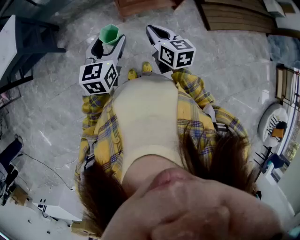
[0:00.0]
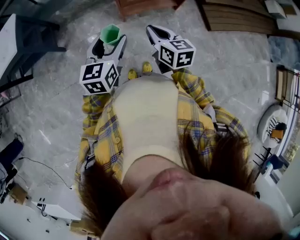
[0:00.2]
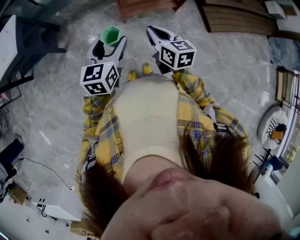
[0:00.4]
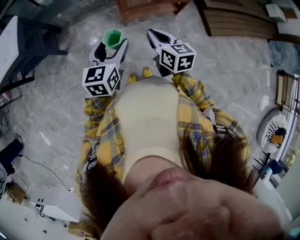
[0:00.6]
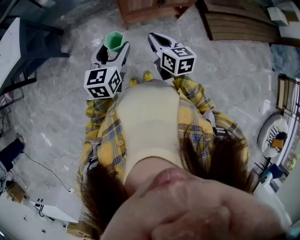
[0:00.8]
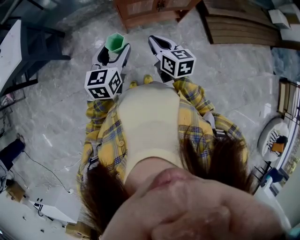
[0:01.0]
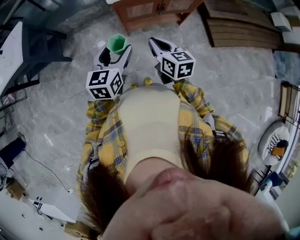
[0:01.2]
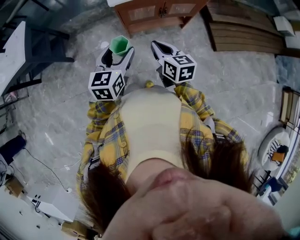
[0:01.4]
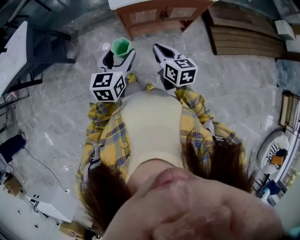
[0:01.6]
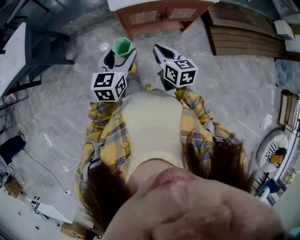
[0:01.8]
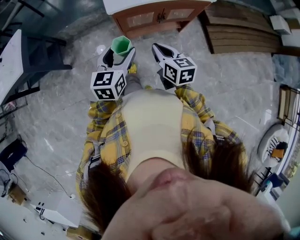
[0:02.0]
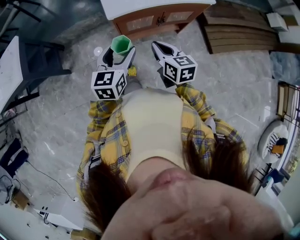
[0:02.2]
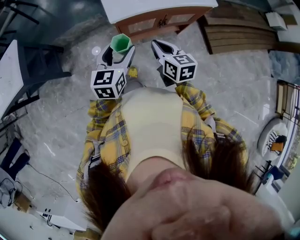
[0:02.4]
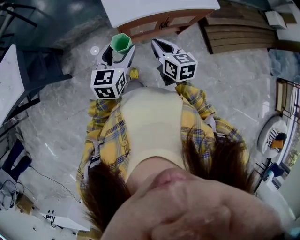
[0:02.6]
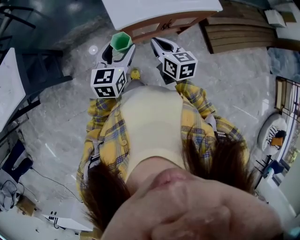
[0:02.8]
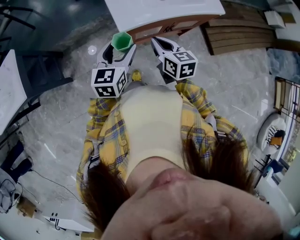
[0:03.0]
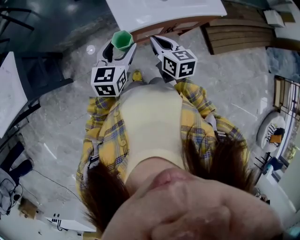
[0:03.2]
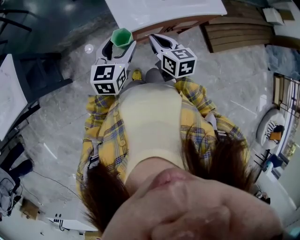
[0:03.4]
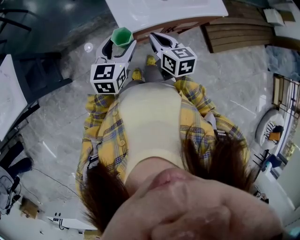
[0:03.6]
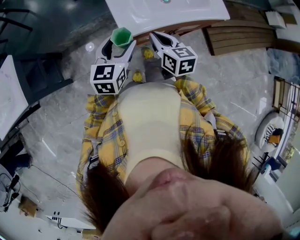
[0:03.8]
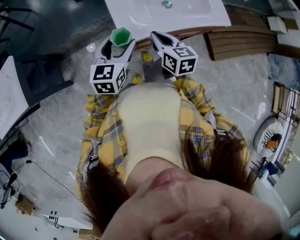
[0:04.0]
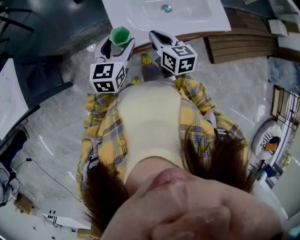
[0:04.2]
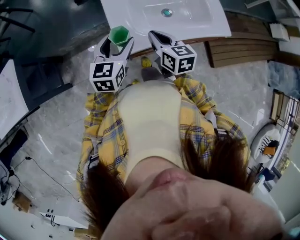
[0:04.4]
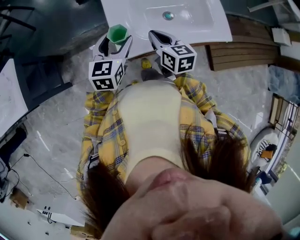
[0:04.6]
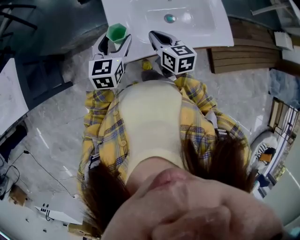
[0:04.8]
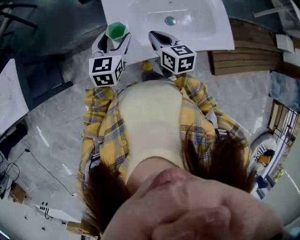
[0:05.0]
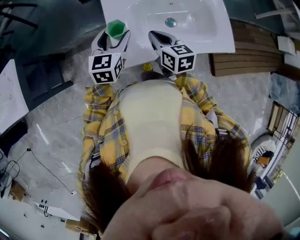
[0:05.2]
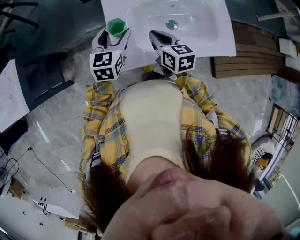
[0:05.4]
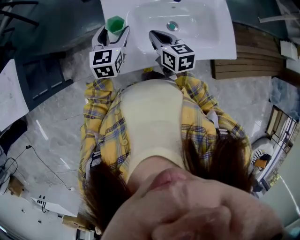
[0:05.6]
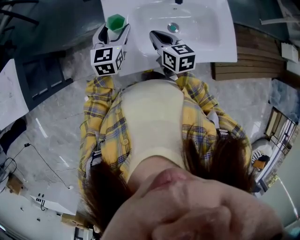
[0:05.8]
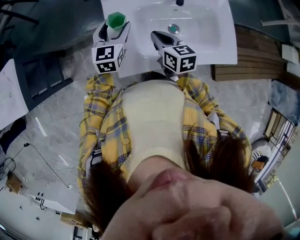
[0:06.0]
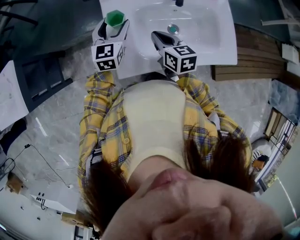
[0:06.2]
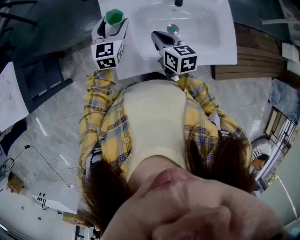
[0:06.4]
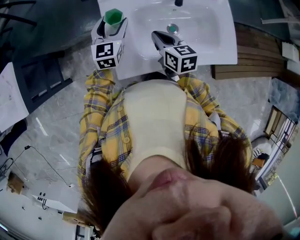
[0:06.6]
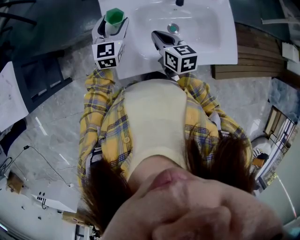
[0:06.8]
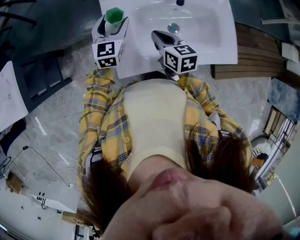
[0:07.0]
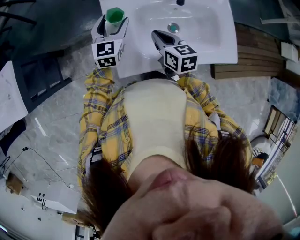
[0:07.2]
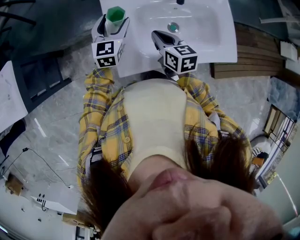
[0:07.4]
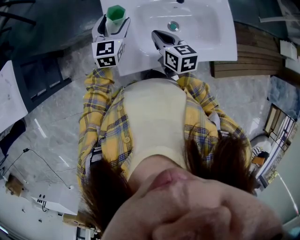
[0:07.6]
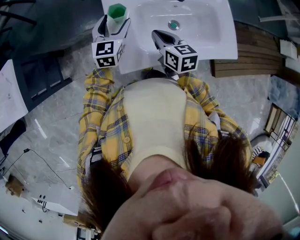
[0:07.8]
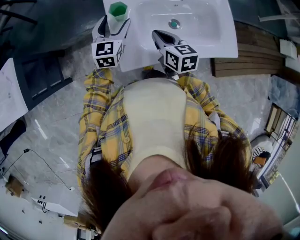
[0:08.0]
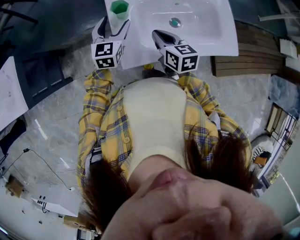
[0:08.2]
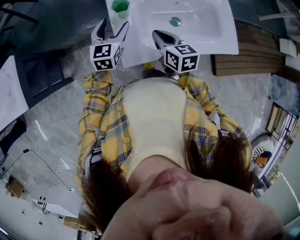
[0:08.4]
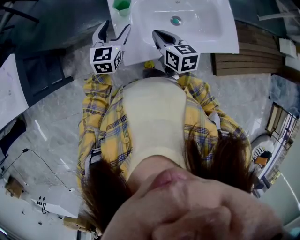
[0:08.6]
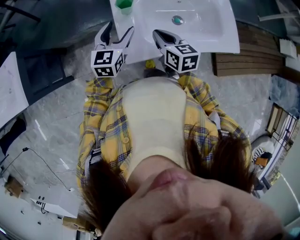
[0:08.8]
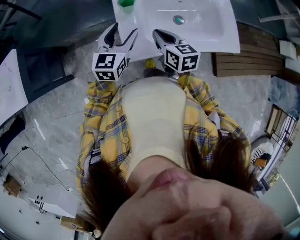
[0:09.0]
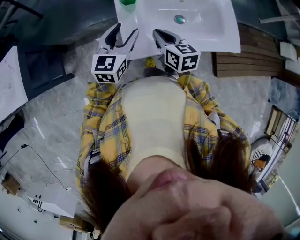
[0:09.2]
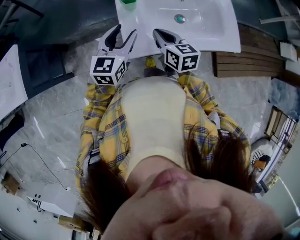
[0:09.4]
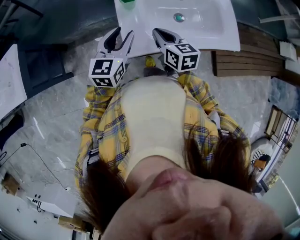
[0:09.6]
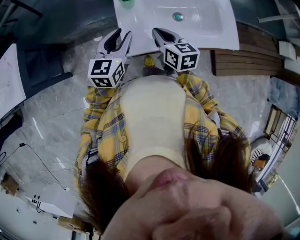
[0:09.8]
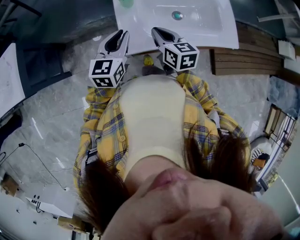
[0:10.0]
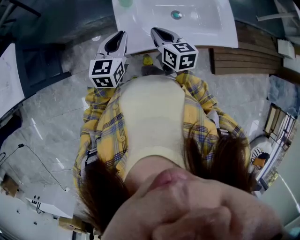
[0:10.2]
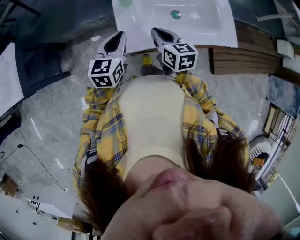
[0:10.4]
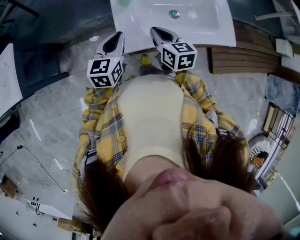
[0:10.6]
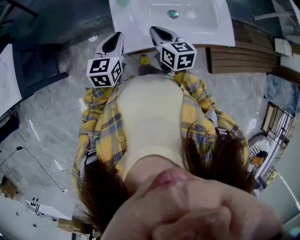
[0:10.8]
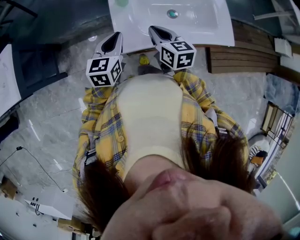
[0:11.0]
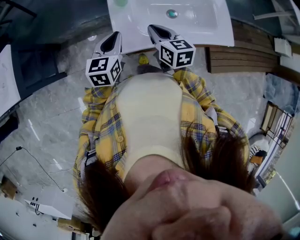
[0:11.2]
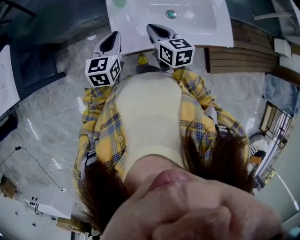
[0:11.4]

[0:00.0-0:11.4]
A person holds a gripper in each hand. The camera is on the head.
0:00.0 to 0:01.4: The left gripper is displaced to the right and forward by some 10 cm; the right gripper goes some 10 cm forward and to the right.
0:01.4 to 0:02.8: Both grippers move forward, some 15 cm.
0:02.8 to 0:04.2: Both grippers travel together forward, about 15 cm.
0:04.2 to 0:05.6: The two grippers go approximately 15 cm forward.
0:05.6 to 0:07.2: The left gripper goes approximately 5 cm forward.
0:07.2 to 0:08.6: The right gripper shifts by about 5 cm. Meanwhile the left gripper travels backward by approximately 5 cm.
0:08.6 to 0:10.0: The left gripper travels backward by about 10 cm, and closes.
0:10.0 to 0:11.4: The grippers stay close to where they were, moving slightly.

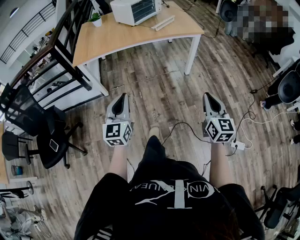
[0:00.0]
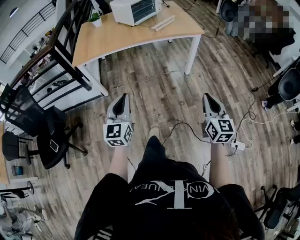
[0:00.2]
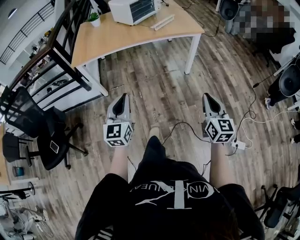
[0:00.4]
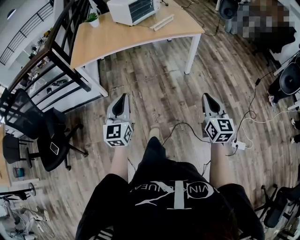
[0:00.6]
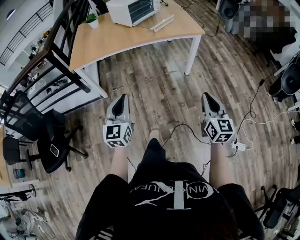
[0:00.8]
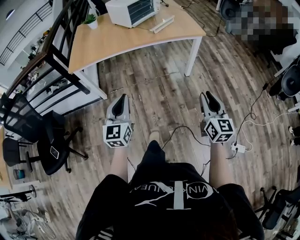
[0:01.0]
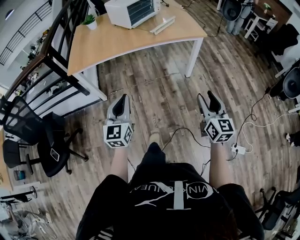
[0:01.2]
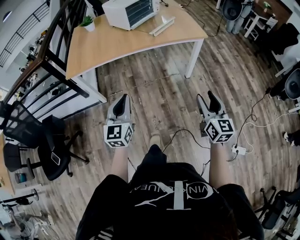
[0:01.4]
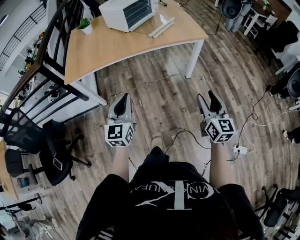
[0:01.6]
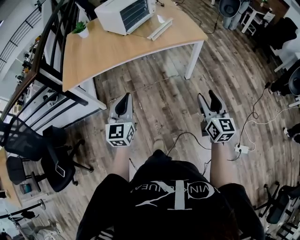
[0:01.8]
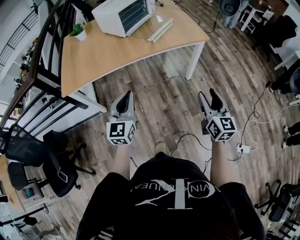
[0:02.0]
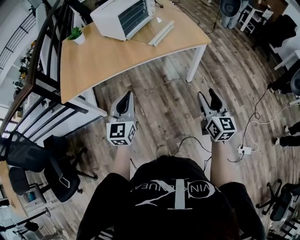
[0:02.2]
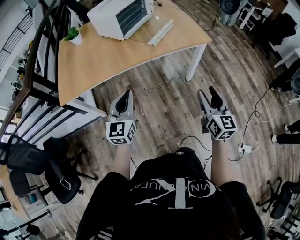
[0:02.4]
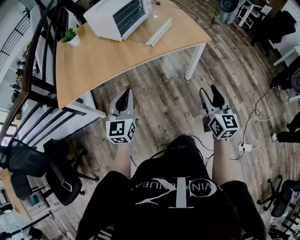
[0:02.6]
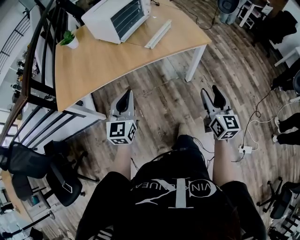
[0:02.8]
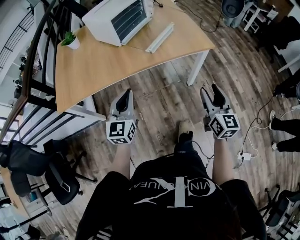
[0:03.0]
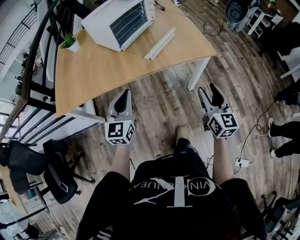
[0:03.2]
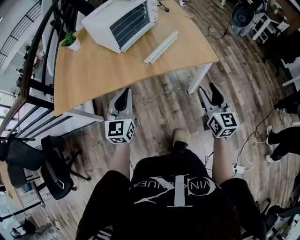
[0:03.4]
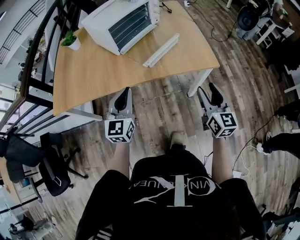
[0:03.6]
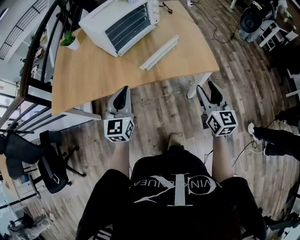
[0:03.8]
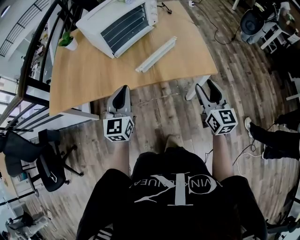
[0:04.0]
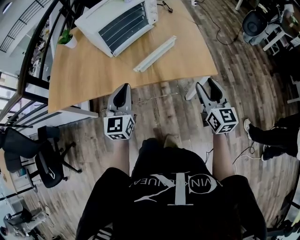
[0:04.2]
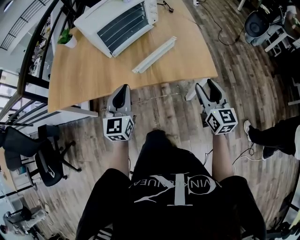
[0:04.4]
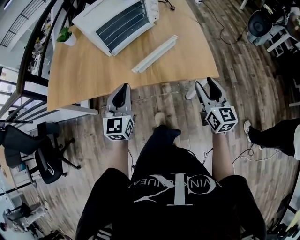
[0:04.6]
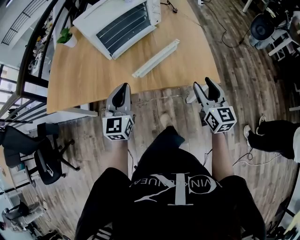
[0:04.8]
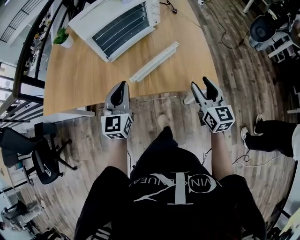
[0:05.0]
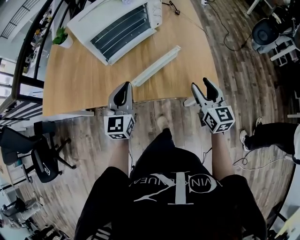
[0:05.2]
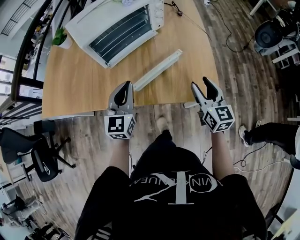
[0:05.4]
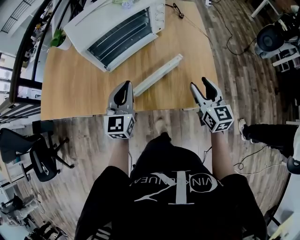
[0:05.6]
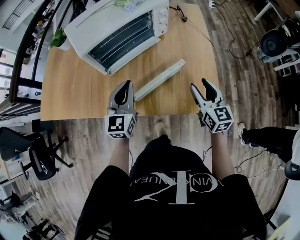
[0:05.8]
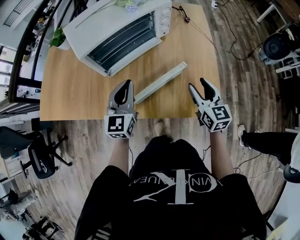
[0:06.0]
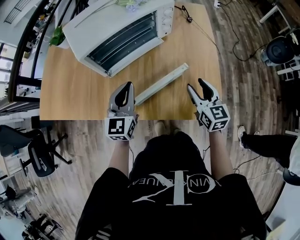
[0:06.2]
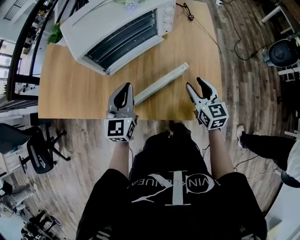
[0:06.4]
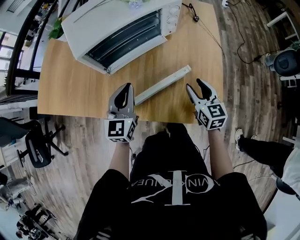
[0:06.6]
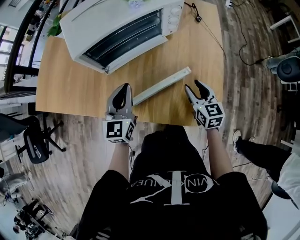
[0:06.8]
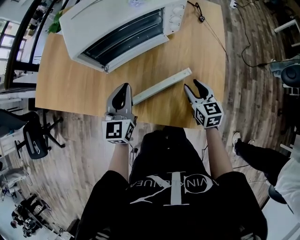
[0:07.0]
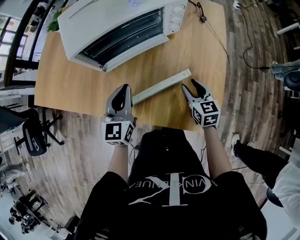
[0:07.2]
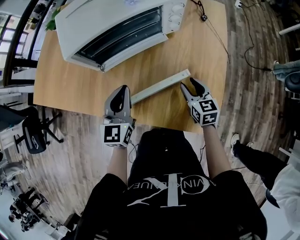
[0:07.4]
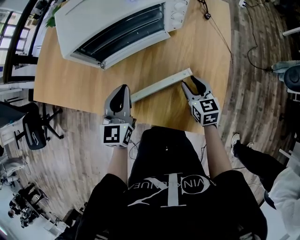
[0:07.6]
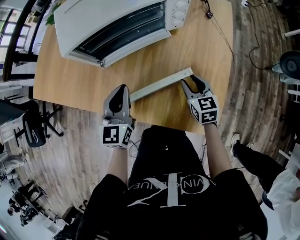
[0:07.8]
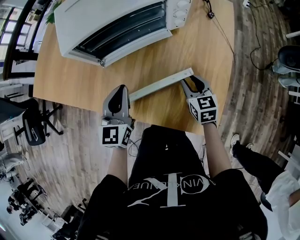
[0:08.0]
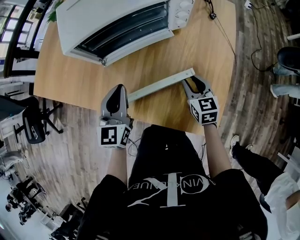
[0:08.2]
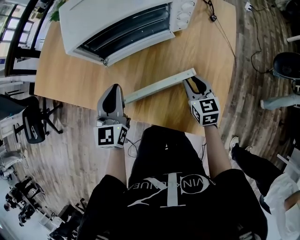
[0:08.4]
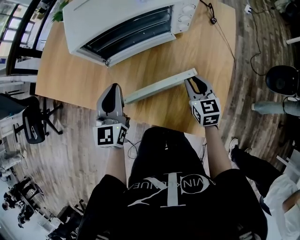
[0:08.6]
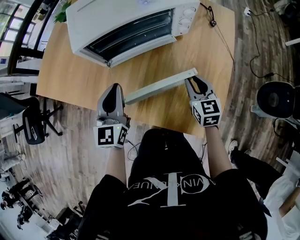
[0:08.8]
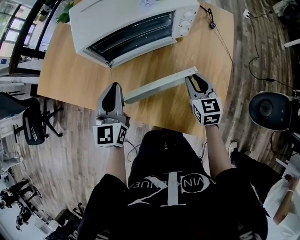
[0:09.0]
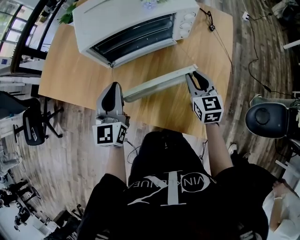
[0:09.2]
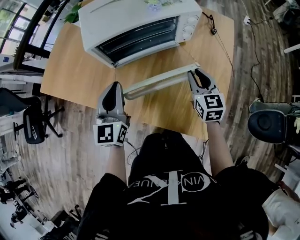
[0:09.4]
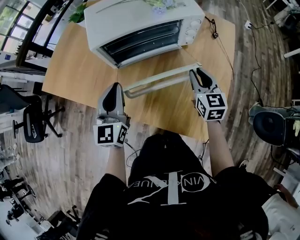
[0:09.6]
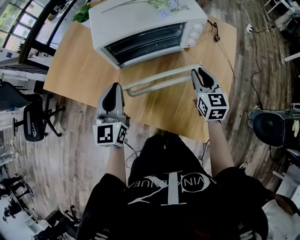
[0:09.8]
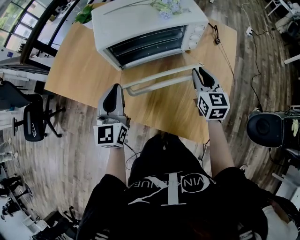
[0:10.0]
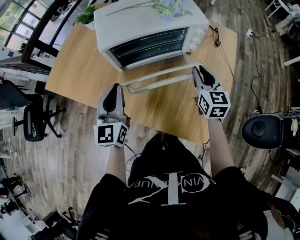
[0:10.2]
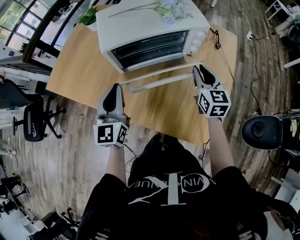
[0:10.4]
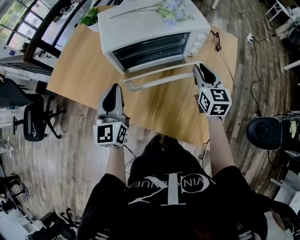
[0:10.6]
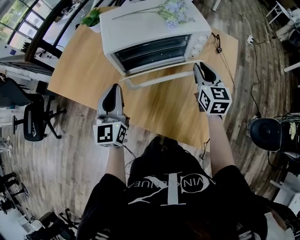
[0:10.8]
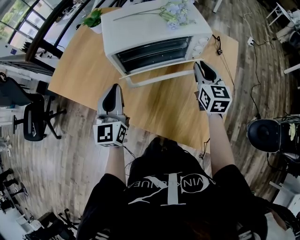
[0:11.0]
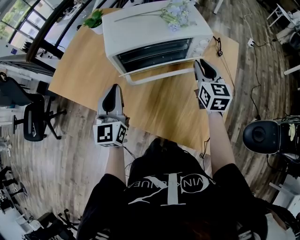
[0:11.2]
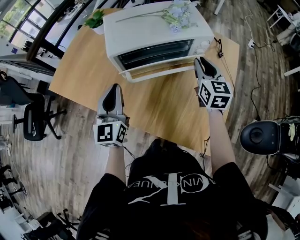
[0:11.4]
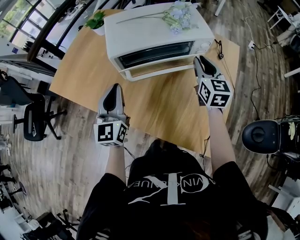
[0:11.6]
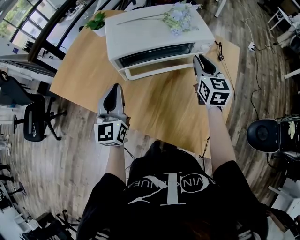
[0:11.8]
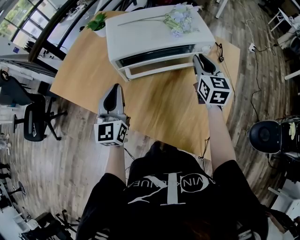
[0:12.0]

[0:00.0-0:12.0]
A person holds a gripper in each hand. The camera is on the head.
0:00.0 to 0:01.6: The grippers both shift forward by about 15 cm. The right gripper opens.
0:01.6 to 0:03.0: Both grippers move forward, some 20 cm.
0:03.0 to 0:04.4: The grippers both shift forward and to the right by some 25 cm.
0:04.4 to 0:06.0: The grippers both shift forward by about 20 cm.
0:06.0 to 0:07.6: The right gripper moves downward and forward, roughly 15 cm, and changes its angle by roughly 20 degrees.
0:07.6 to 0:09.0: The two grippers go about 5 cm upward. The right gripper closes its fingers.
0:09.0 to 0:10.4: The left gripper moves some 5 cm; the right gripper is displaced upward and forward by some 10 cm.
0:10.4 to 0:12.0: The right gripper shifts approximately 10 cm forward and upward.

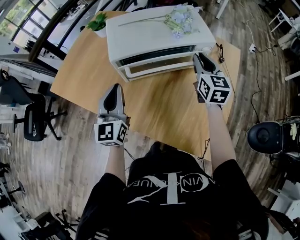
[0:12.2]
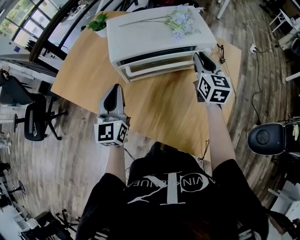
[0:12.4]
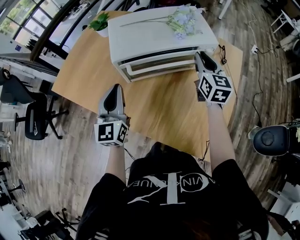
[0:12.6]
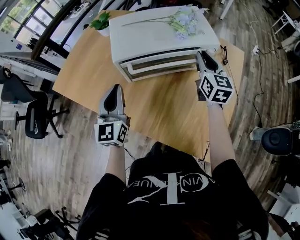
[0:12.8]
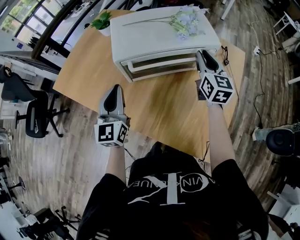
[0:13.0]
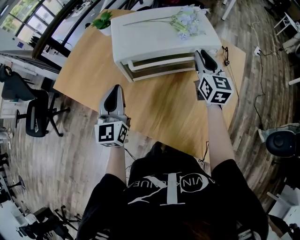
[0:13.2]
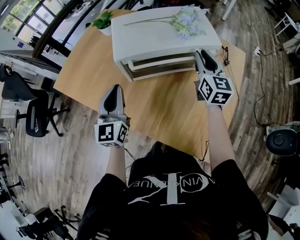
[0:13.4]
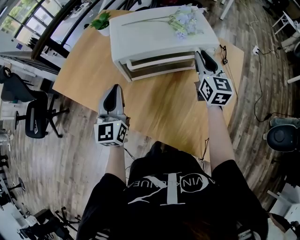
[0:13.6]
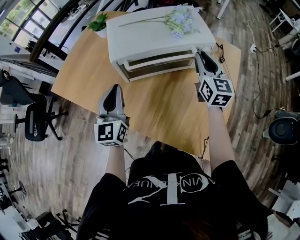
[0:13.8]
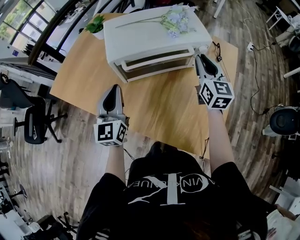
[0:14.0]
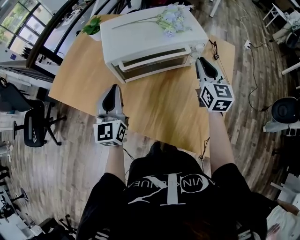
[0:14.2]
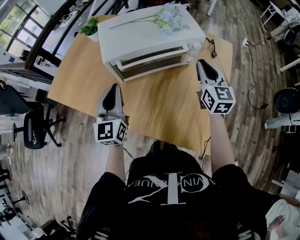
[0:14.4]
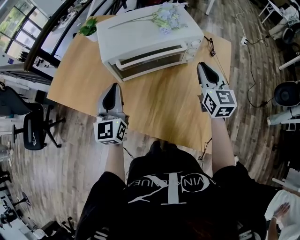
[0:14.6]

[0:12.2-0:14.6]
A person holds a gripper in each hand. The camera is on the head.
0:12.2 to 0:13.4: The grippers make only small movements.
0:13.4 to 0:14.6: The right gripper moves backward, some 10 cm.
